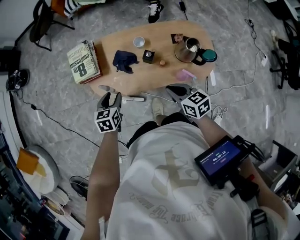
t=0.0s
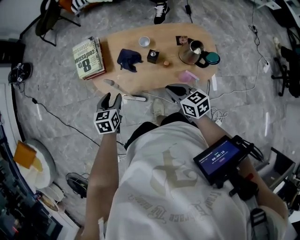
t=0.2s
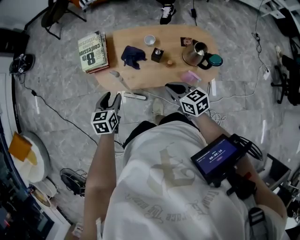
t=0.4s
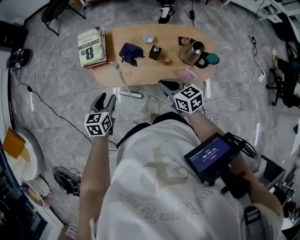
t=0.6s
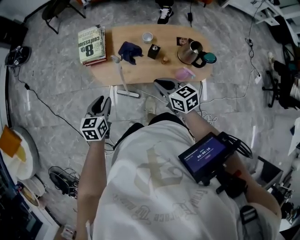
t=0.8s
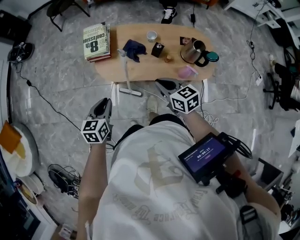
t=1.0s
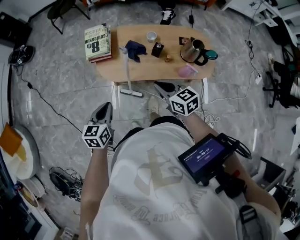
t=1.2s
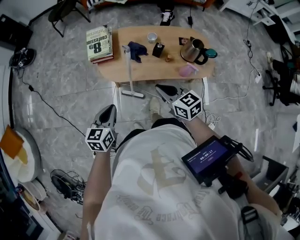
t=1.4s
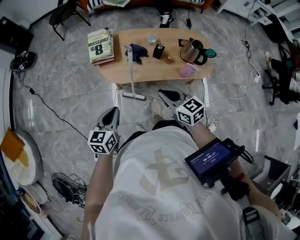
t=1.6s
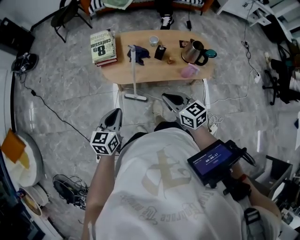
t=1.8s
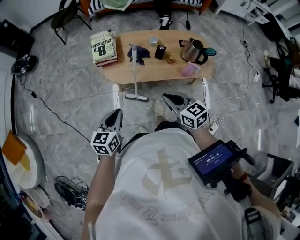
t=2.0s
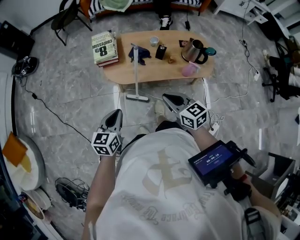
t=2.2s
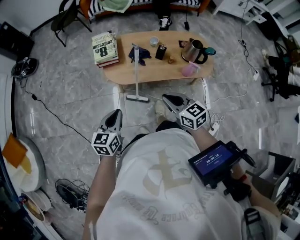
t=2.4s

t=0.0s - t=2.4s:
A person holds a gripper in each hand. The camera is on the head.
t=0.0s - t=1.2s: The right gripper goes about 15 cm to the left and upward; the left gripper travels backward, to the left and upward by approximately 20 cm, and closes its fingers.
t=1.2s - t=2.4s: The right gripper heads backward, covering roughly 10 cm. Meanwhile the left gripper moves backward, about 5 cm.

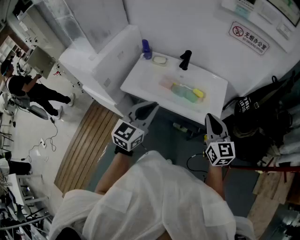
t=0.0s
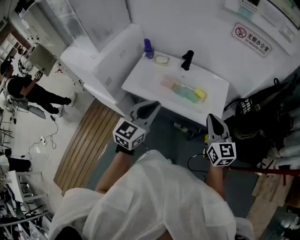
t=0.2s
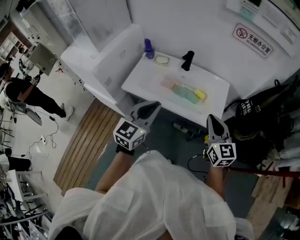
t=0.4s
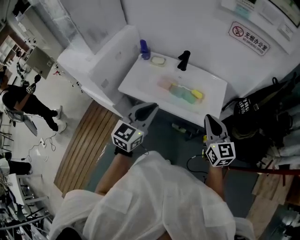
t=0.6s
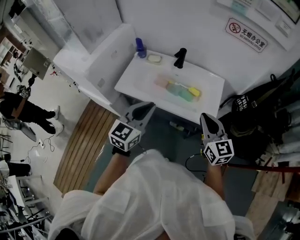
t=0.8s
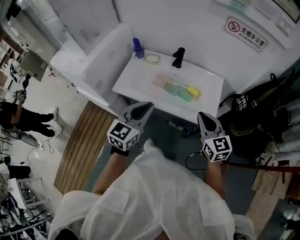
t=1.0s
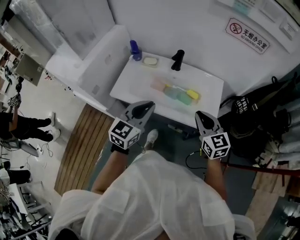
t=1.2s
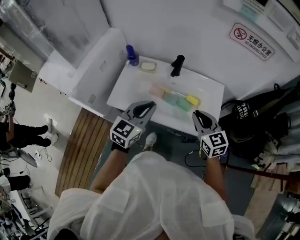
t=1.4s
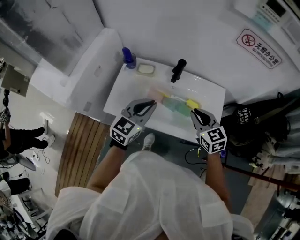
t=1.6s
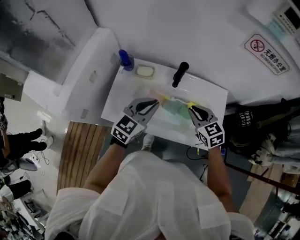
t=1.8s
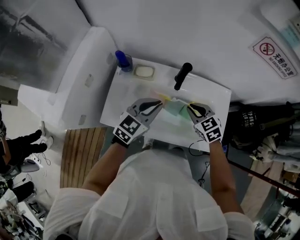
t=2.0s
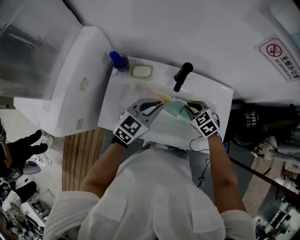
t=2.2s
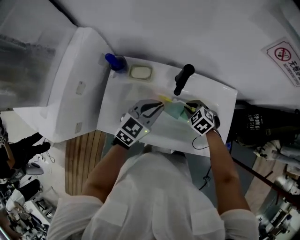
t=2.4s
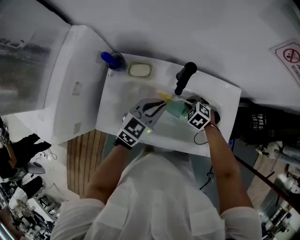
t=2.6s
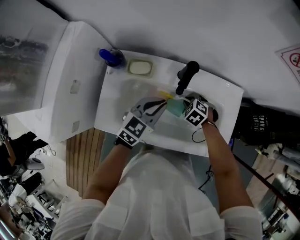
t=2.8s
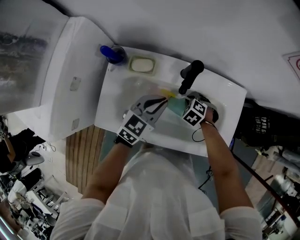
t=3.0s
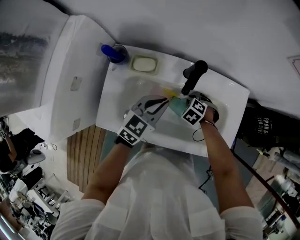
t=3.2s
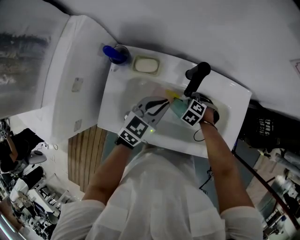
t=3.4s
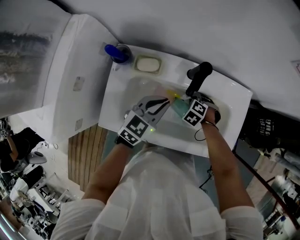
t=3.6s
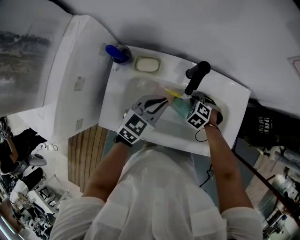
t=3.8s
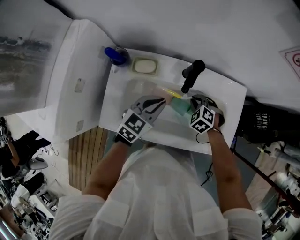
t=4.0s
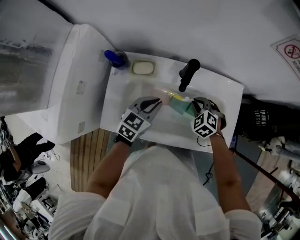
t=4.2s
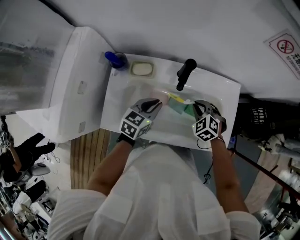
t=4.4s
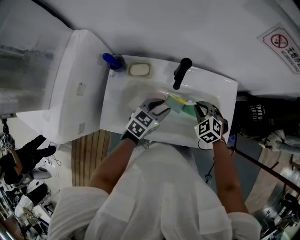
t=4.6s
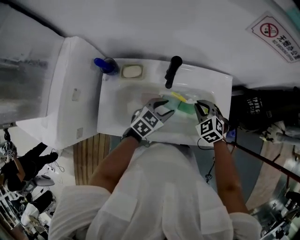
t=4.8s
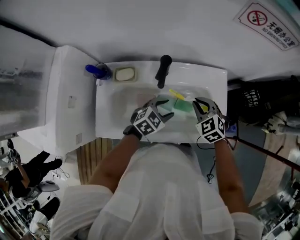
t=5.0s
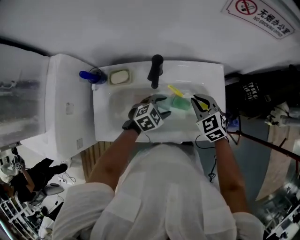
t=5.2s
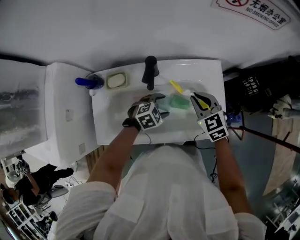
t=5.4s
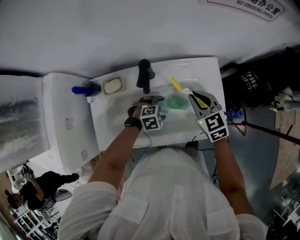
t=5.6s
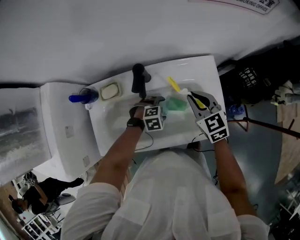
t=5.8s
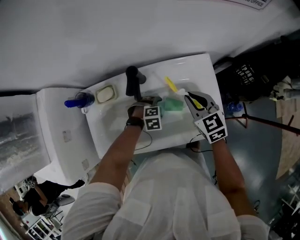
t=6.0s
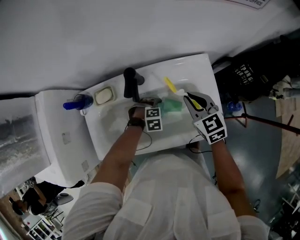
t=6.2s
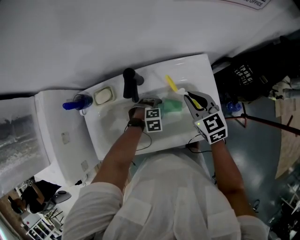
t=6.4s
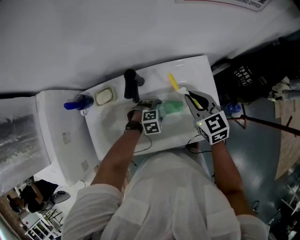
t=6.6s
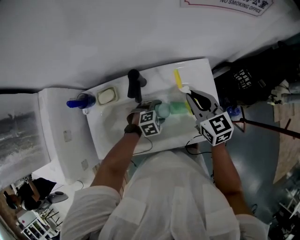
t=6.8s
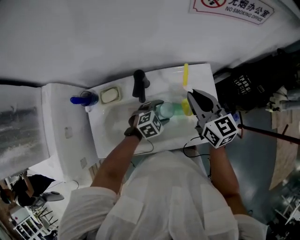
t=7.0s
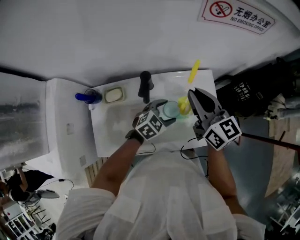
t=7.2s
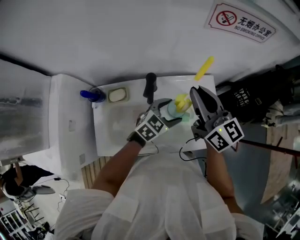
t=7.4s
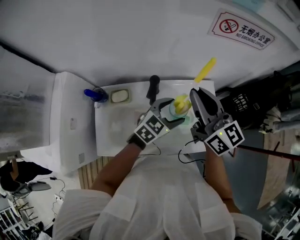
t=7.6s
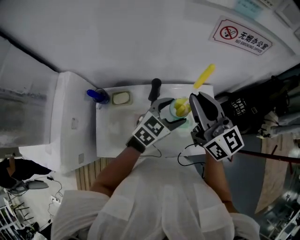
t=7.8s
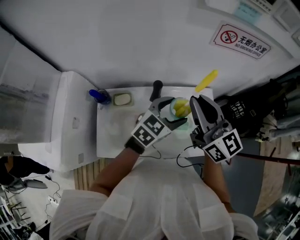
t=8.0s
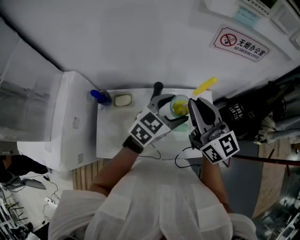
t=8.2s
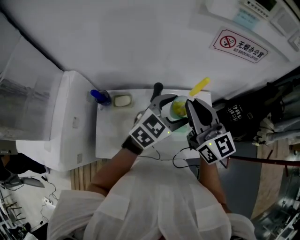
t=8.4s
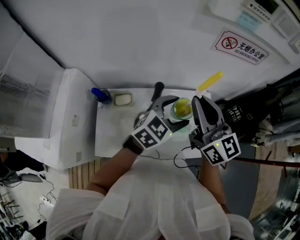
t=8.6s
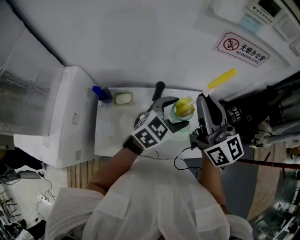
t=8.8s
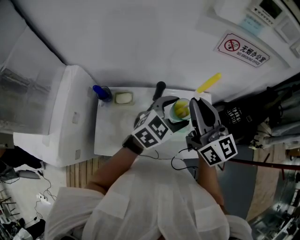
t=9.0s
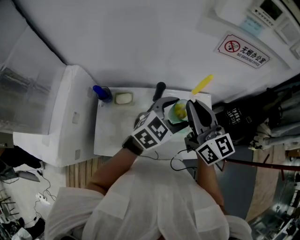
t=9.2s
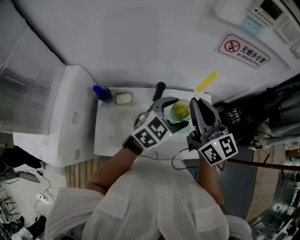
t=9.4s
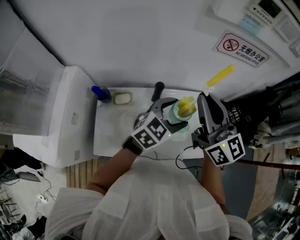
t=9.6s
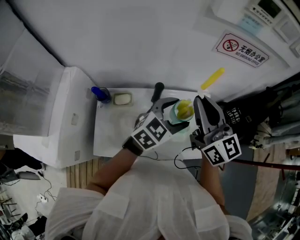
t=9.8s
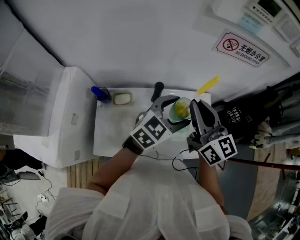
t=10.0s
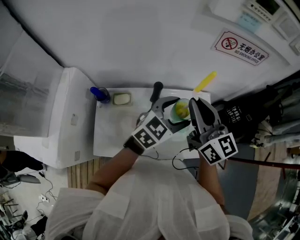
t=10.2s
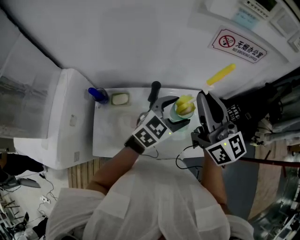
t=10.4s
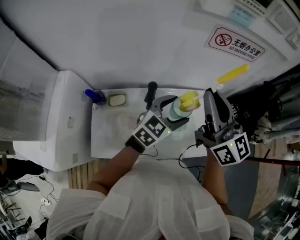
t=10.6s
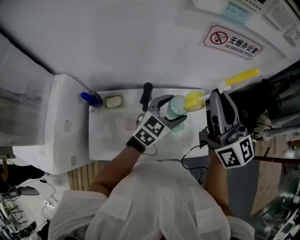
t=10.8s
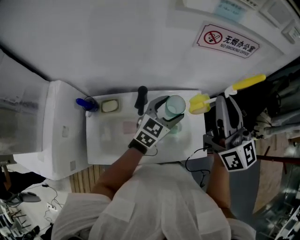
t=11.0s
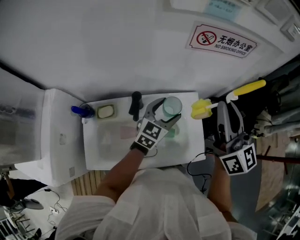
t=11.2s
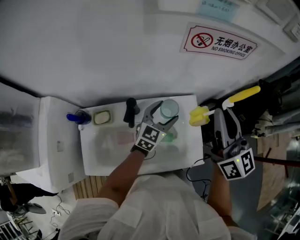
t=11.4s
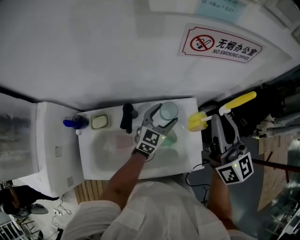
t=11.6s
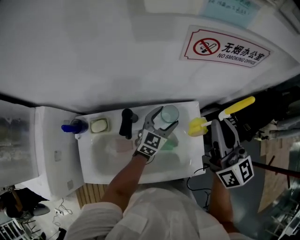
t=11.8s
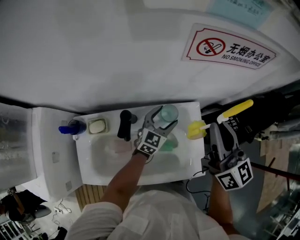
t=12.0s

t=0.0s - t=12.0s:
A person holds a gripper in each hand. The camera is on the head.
t=0.0s - t=1.6s: The left gripper heads forward, covering approximately 20 cm. The right gripper shifts some 20 cm forward and downward, and swivels approximately 20 degrees.
t=1.6s - t=3.0s: The right gripper is displaced downward by approximately 25 cm, and tilts its fingers about 50 degrees downward. The left gripper goes about 15 cm downward.
t=3.0s - t=4.4s: The right gripper moves upward, some 10 cm, and changes its angle by some 20 degrees.
t=4.4s - t=6.0s: The right gripper shifts by roughly 15 cm, and rolls clockwise, seen from behind, by approximately 40 degrees, while the left gripper heads downward, covering roughly 15 cm, tilts its fingers about 40 degrees downward, and opens.
t=6.0s - t=7.6s: Both grippers travel together upward, roughly 25 cm. The left gripper points its fingers about 50 degrees further upward, while the right gripper tips its fingers upward by roughly 40 degrees.
t=7.6s - t=9.0s: The right gripper ends up roughly 5 cm from where it was; the left gripper is displaced upward by about 10 cm.
t=9.0s - t=10.4s: The grippers make only small movements.
t=10.4s - t=12.0s: The left gripper is displaced downward and forward by roughly 25 cm, while the right gripper is displaced to the right, forward and downward by some 20 cm.

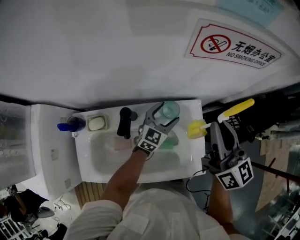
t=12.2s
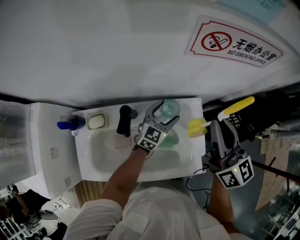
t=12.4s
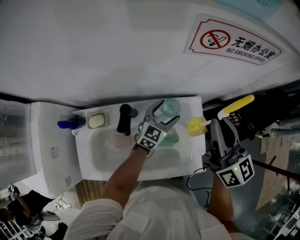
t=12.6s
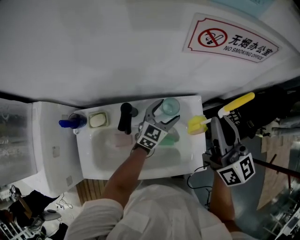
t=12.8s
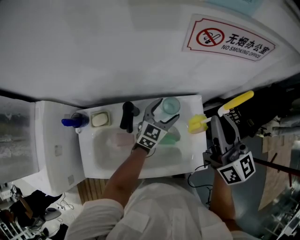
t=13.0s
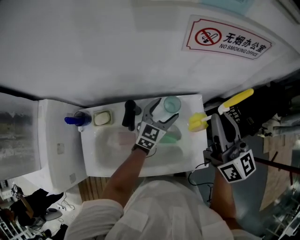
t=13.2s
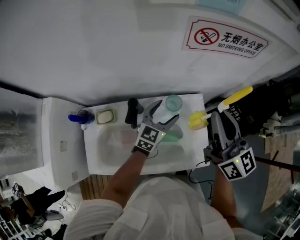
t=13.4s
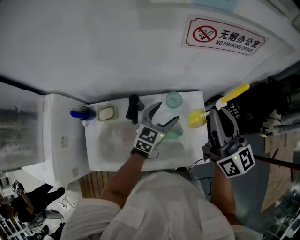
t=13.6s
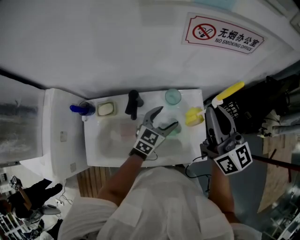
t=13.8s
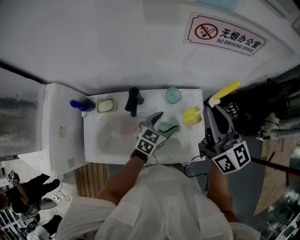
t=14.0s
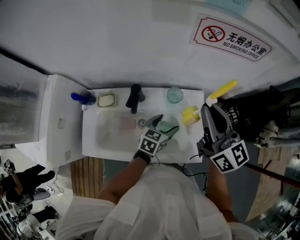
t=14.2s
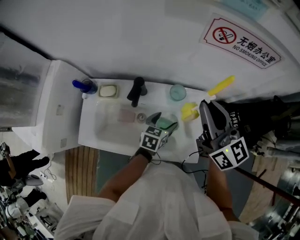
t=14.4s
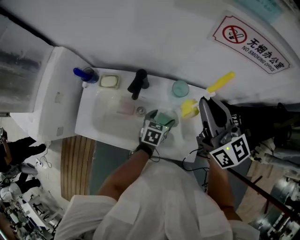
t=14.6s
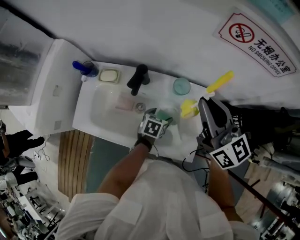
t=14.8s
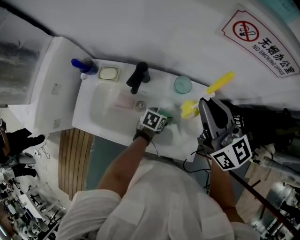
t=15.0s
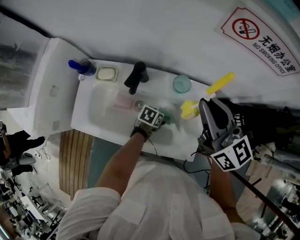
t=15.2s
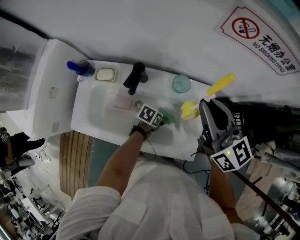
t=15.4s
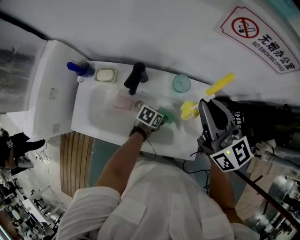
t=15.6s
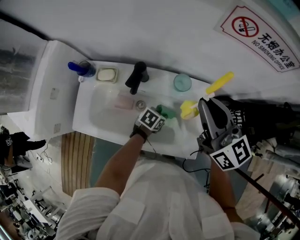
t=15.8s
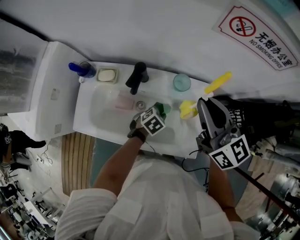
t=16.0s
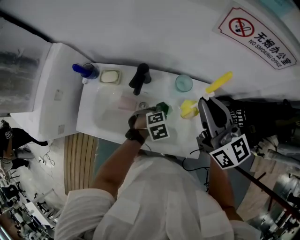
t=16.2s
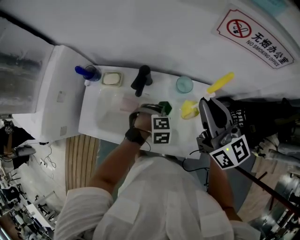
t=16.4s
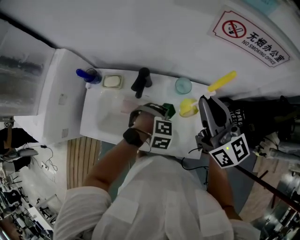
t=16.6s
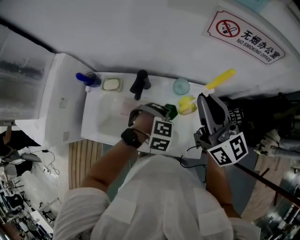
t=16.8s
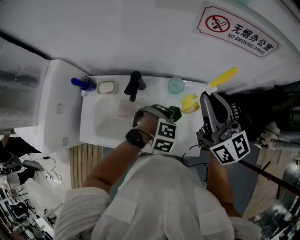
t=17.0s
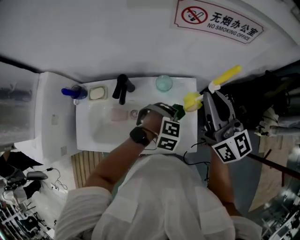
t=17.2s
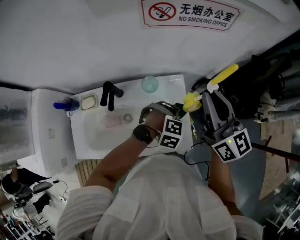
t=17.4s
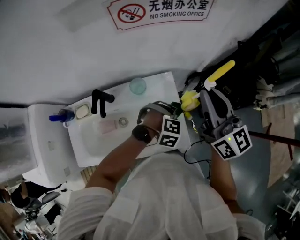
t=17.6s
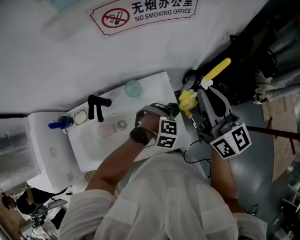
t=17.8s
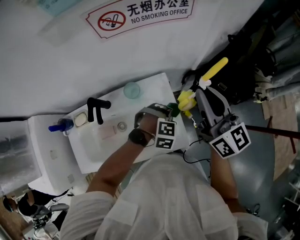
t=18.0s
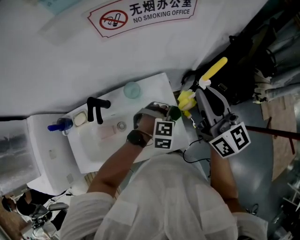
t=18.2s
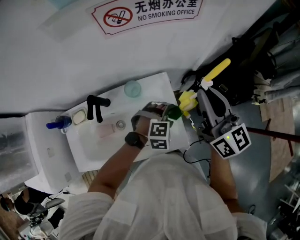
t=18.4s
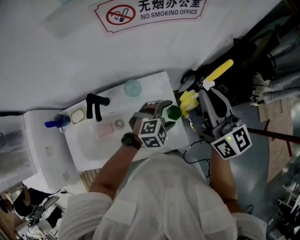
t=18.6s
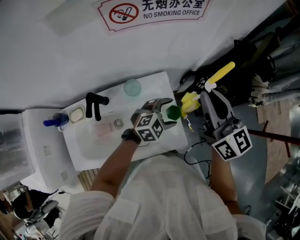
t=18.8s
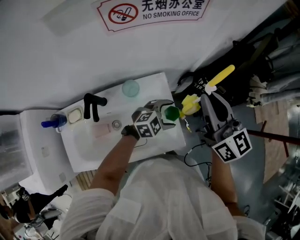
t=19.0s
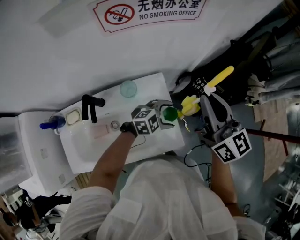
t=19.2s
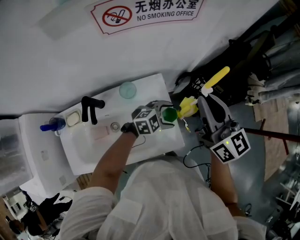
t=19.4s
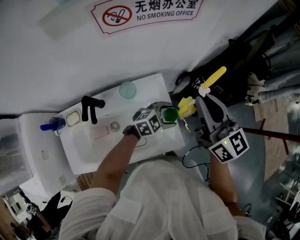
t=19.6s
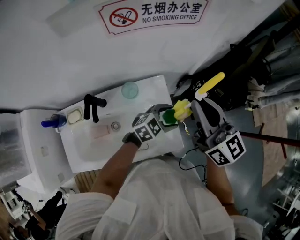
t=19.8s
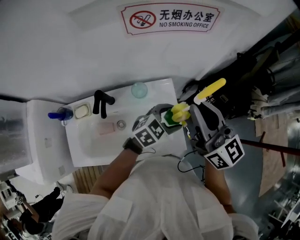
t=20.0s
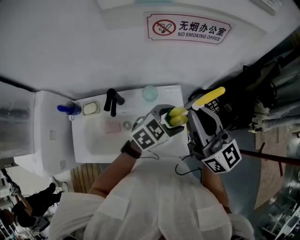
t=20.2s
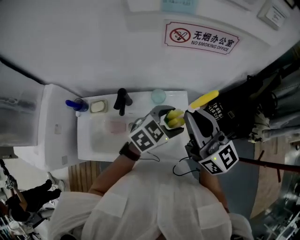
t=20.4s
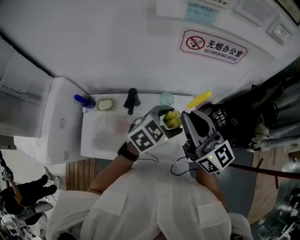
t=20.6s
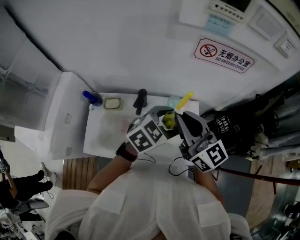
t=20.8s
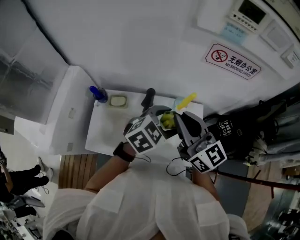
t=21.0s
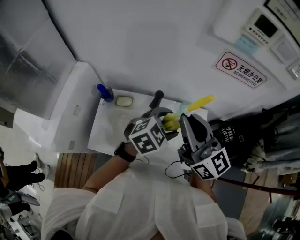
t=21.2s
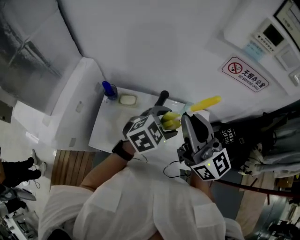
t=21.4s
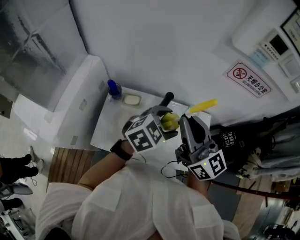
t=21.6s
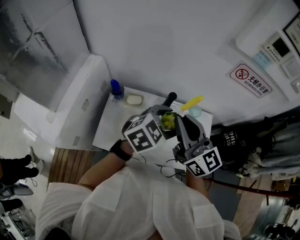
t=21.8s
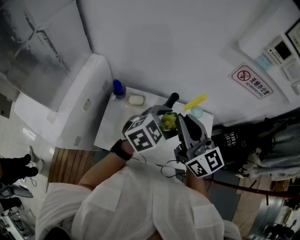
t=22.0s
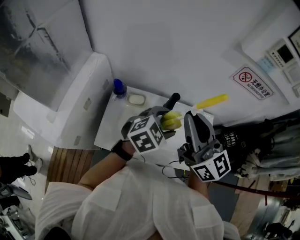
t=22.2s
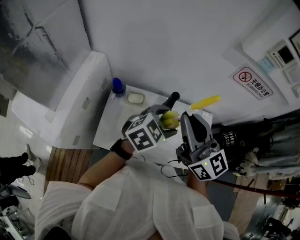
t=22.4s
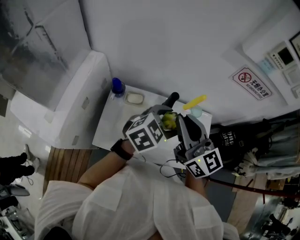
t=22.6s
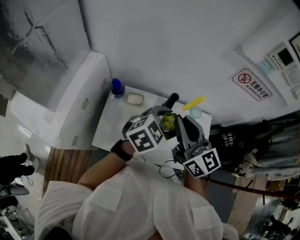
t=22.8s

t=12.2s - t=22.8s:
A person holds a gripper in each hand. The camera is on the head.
t=12.2s - t=13.8s: The right gripper shifts by approximately 5 cm, while the left gripper travels backward and upward by roughly 10 cm.
t=13.8s - t=15.2s: The right gripper changes place by some 5 cm, and rotates roughly 30 degrees. The left gripper shifts roughly 20 cm downward, and angles its fingers downward, by roughly 30 degrees.
t=15.2s - t=16.8s: The left gripper heads upward, covering some 15 cm, rolls clockwise, seen from behind, by approximately 90 degrees, and closes up.
t=16.8s - t=18.2s: The right gripper shifts by about 20 cm, and rotates some 20 degrees. The left gripper shifts by roughly 20 cm, rotates approximately 20 degrees, and opens.
t=18.2s - t=19.8s: The left gripper tips its fingers upward by about 30 degrees.
t=19.8s - t=21.2s: The right gripper shifts by about 30 cm, and swivels some 30 degrees, while the left gripper moves some 30 cm, and rotates roughly 30 degrees.
t=21.2s - t=22.8s: The two grippers go approximately 10 cm to the left.
